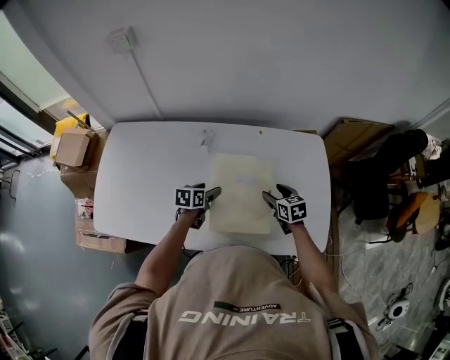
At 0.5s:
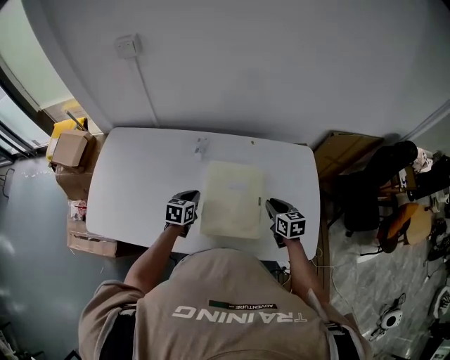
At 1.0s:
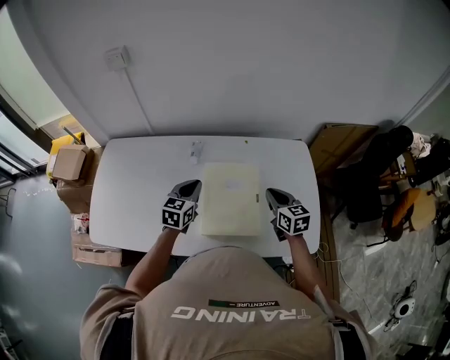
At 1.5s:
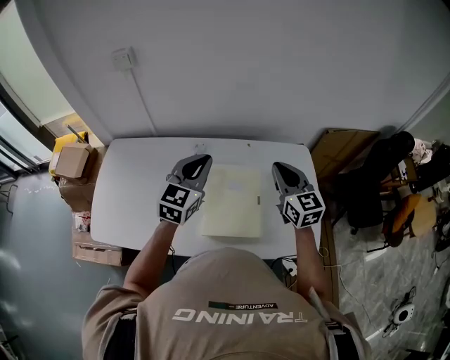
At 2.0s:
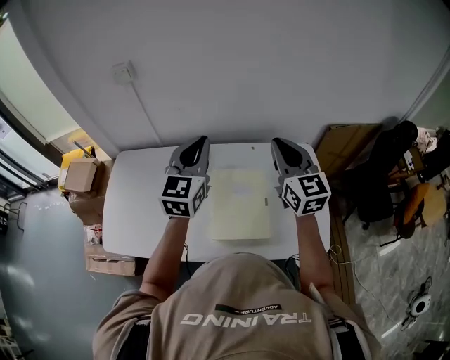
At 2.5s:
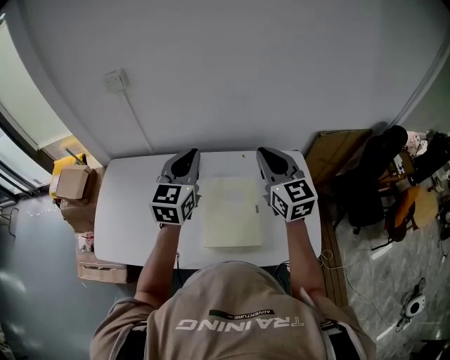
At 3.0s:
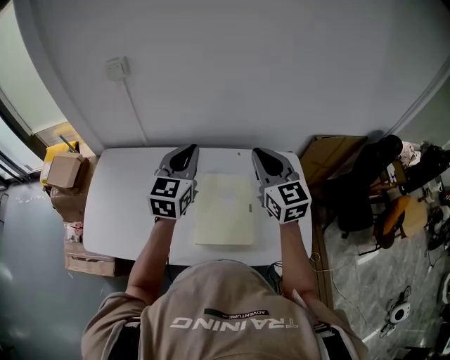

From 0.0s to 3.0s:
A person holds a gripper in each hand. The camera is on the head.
From 0.0s to 1.5s: Both grippers travel together upward, some 30 cm. The left gripper points its fingers approximately 30 degrees further upward, and closes. The right gripper points its fingers some 30 degrees further upward, and closes up.
From 1.5s to 3.0s: The right gripper travels upward and to the left by approximately 10 cm. Meanwhile the left gripper goes about 5 cm upward.

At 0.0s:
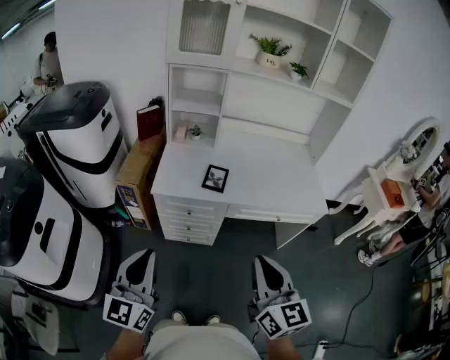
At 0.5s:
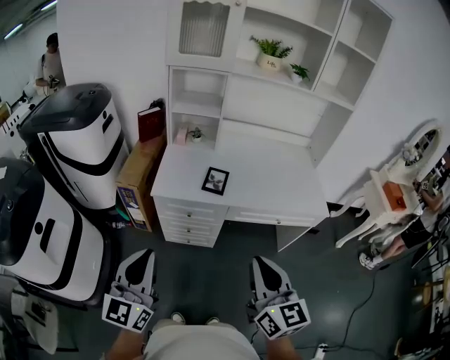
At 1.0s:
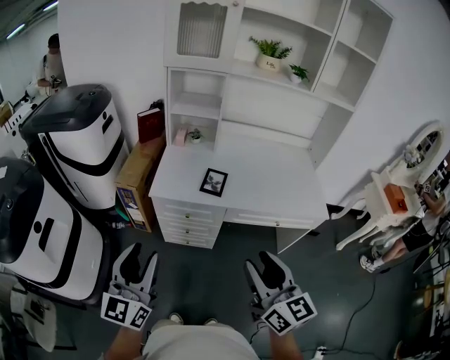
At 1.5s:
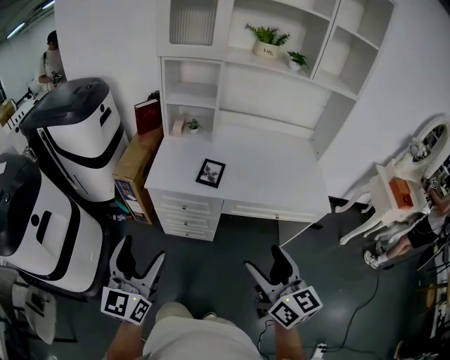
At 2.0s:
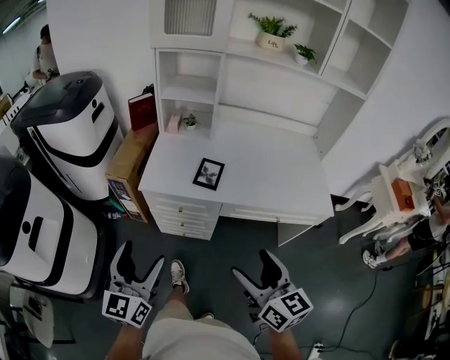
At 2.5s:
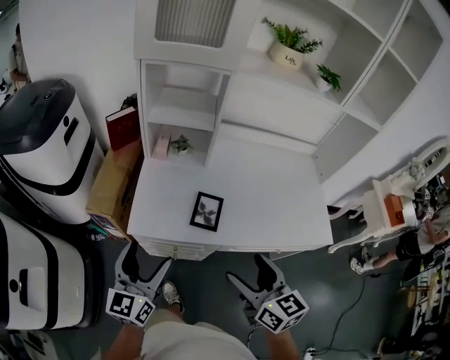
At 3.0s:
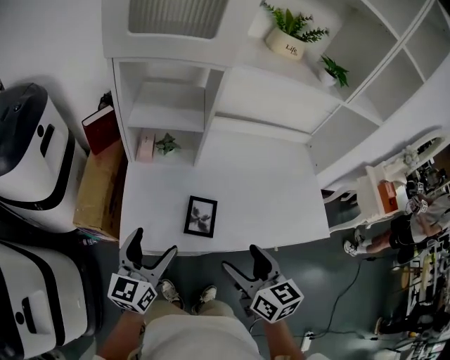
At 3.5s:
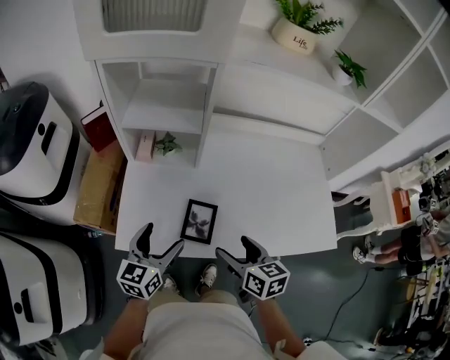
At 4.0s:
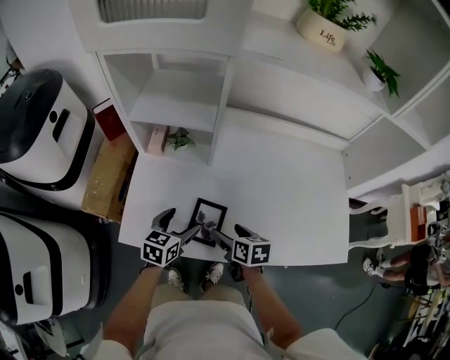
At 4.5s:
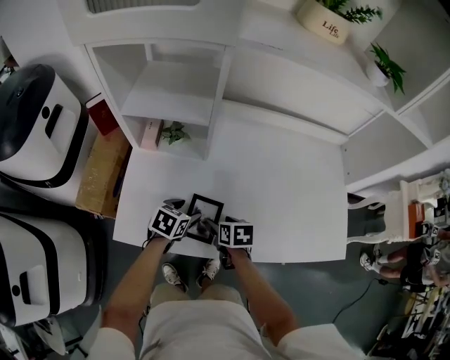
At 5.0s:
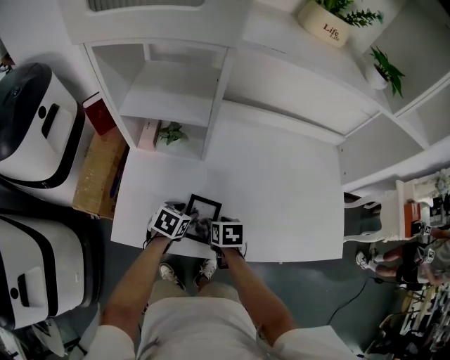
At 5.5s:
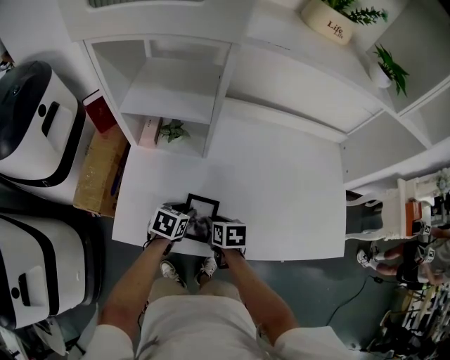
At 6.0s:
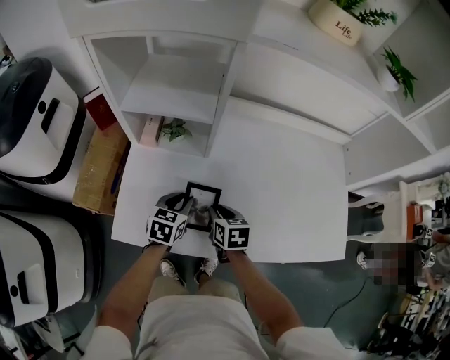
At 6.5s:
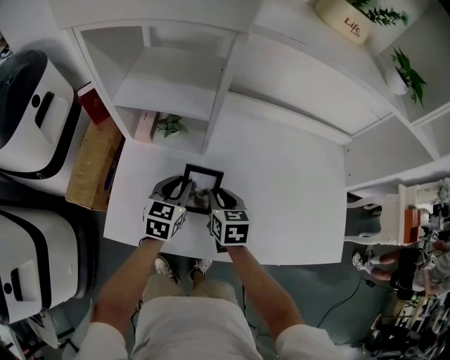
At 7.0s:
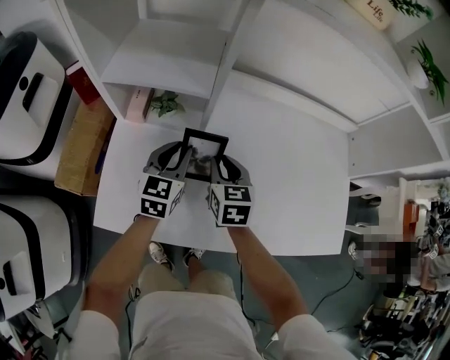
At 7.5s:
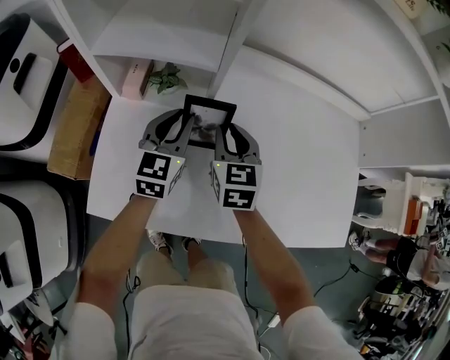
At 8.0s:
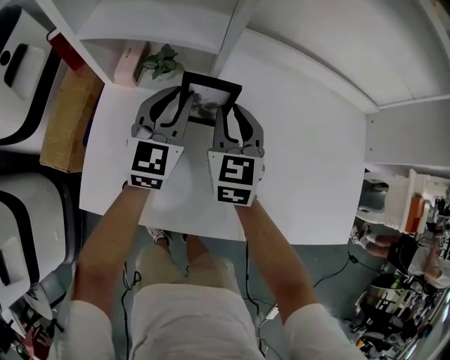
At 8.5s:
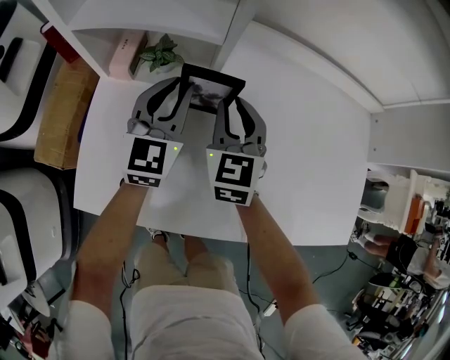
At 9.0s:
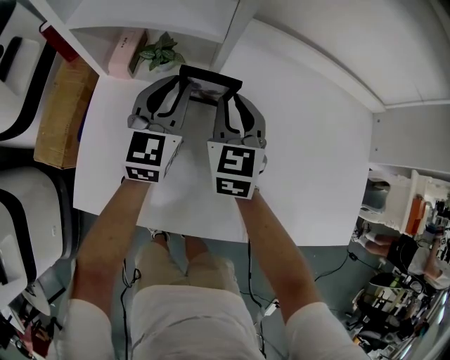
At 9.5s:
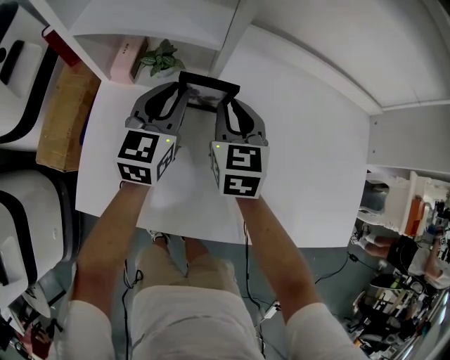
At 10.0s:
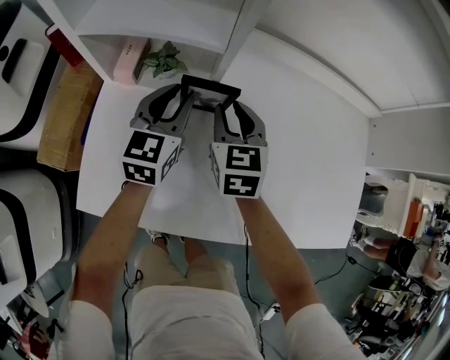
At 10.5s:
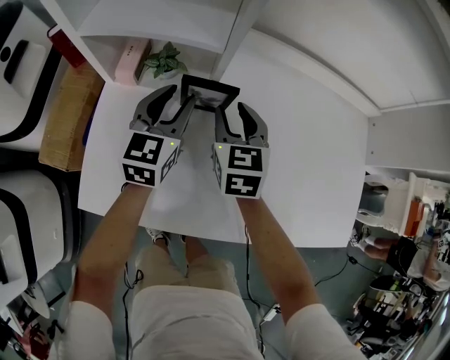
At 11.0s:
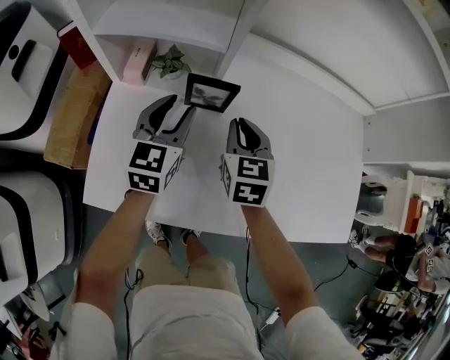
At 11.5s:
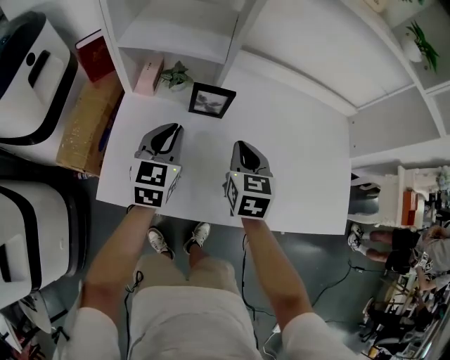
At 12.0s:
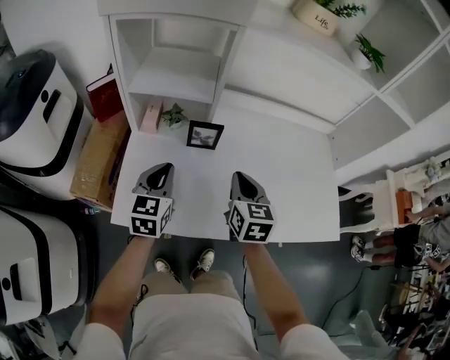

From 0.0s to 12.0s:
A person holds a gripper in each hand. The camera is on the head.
From 0.0s to 2.0s: Both grippers move downward, forward and to the right, approximately 10 cm. The right gripper opens up, while the left gripper opens up.
From 2.0s to 4.0s: Both grippers are carried forward, approximately 40 cm. The grippers both shift downward by about 25 cm. The left gripper angles its fingers downward, by some 30 degrees; the right gripper tilts its fingers roughly 30 degrees downward.
From 4.0s to 6.0s: Both grippers move forward, about 5 cm. The left gripper closes up, while the right gripper closes its fingers.
From 6.0s to 8.0s: The grippers both shift forward and upward by some 15 cm. The left gripper tips its fingers upward by approximately 30 degrees, while the right gripper changes its angle by about 40 degrees.
From 8.0s to 10.0s: There are only small adjustments of the grippers.
From 10.0s to 12.0s: The grippers both shift backward and upward by some 20 cm.

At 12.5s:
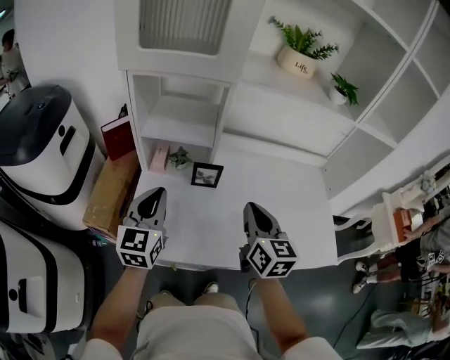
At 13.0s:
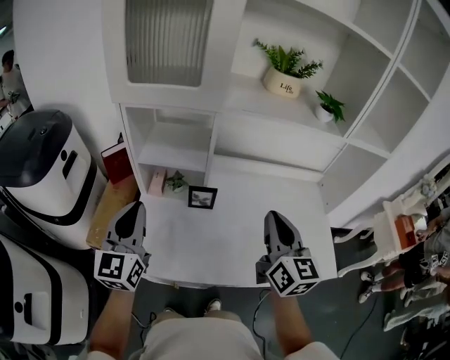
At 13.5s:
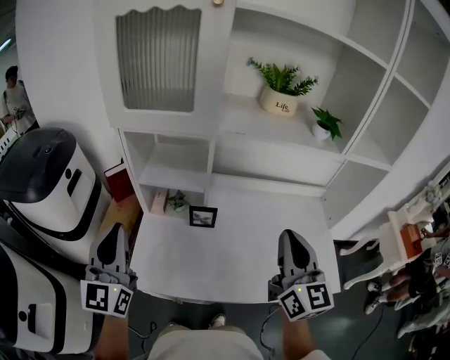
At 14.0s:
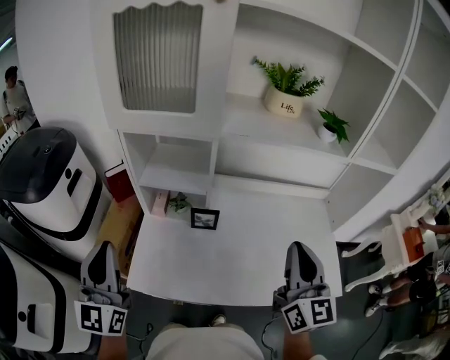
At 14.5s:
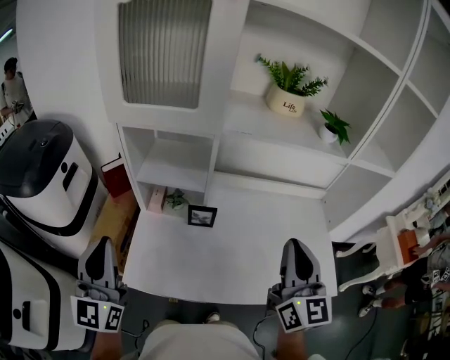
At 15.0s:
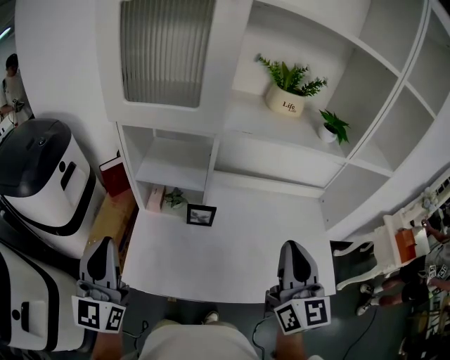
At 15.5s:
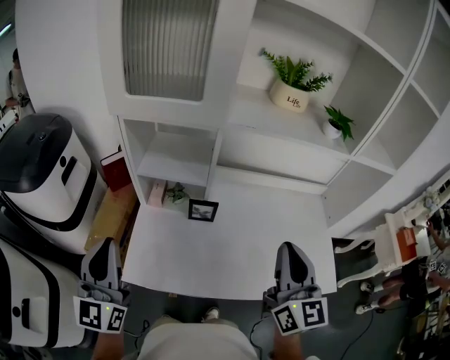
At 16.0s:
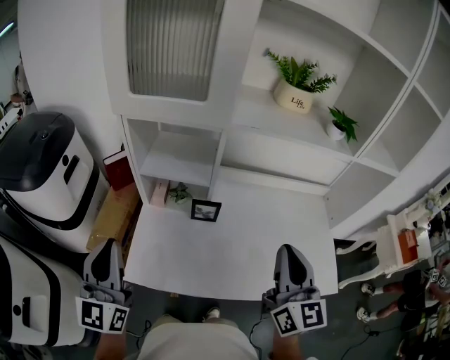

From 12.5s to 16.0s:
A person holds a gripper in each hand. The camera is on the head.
From 12.5s to 14.5s: The left gripper goes some 20 cm upward, backward and to the left, and swivels approximately 20 degrees. Meanwhile the right gripper goes approximately 15 cm upward and to the right, and changes its angle by roughly 20 degrees.
From 14.5s to 16.0s: There are only small adjustments of the grippers.

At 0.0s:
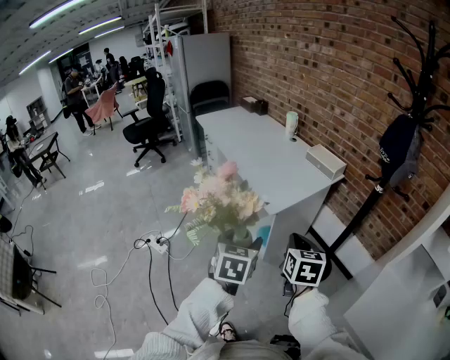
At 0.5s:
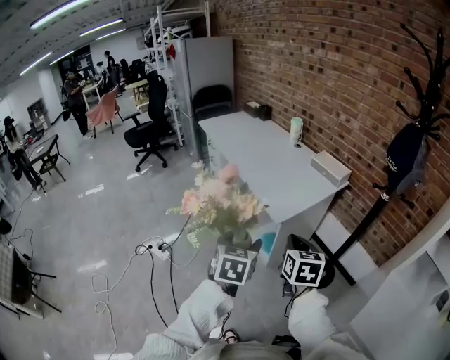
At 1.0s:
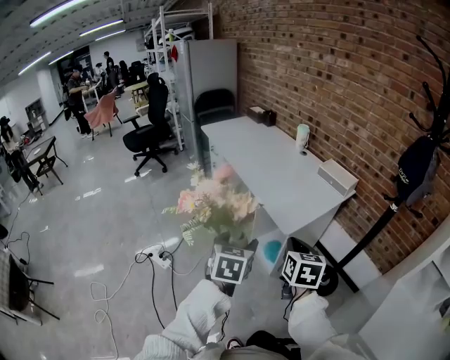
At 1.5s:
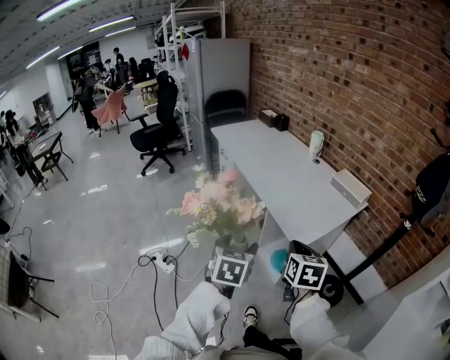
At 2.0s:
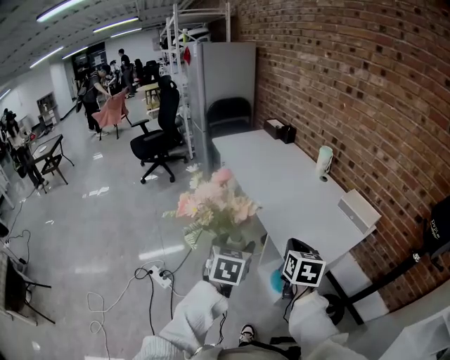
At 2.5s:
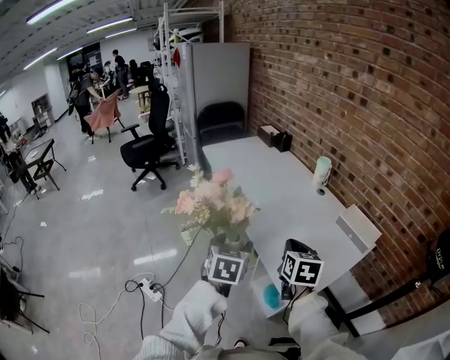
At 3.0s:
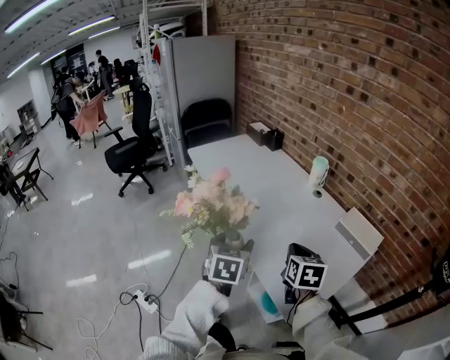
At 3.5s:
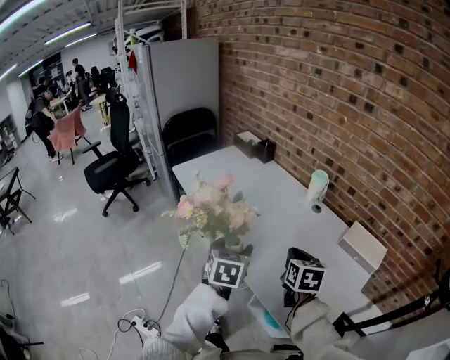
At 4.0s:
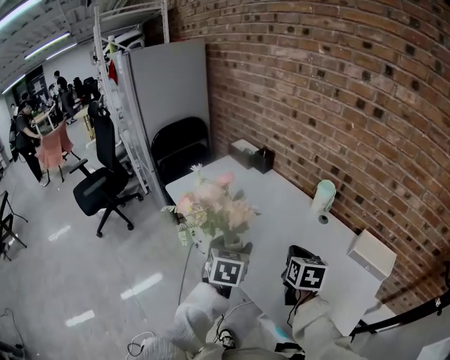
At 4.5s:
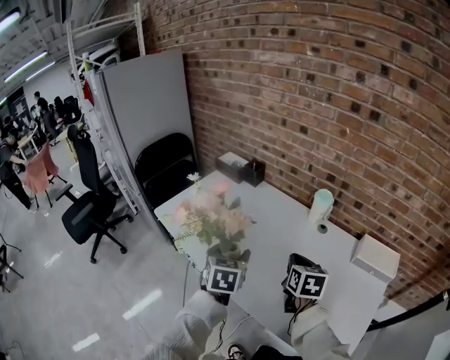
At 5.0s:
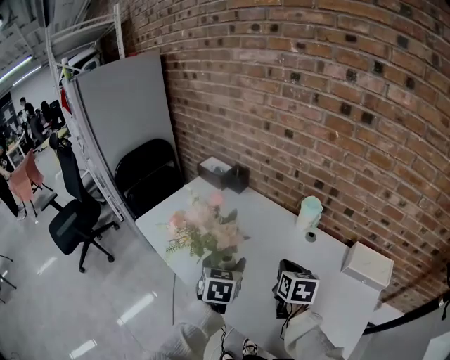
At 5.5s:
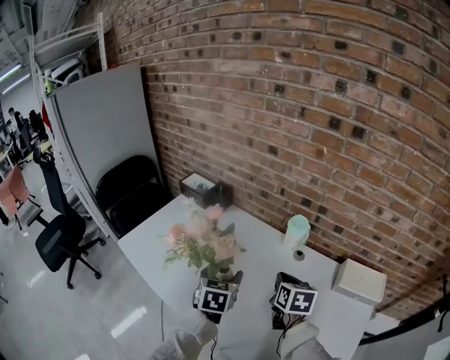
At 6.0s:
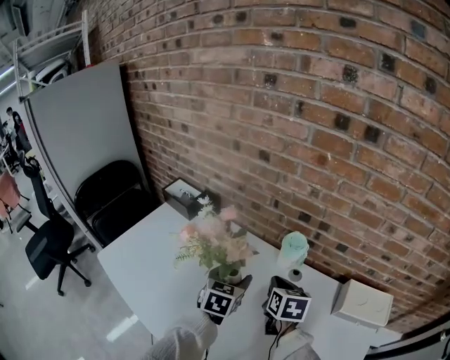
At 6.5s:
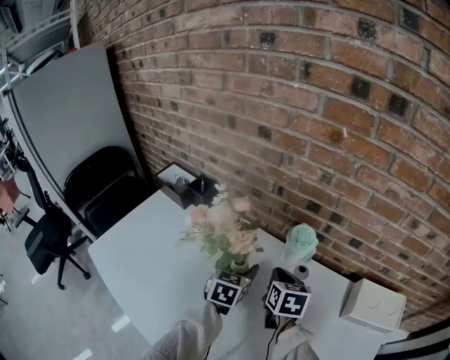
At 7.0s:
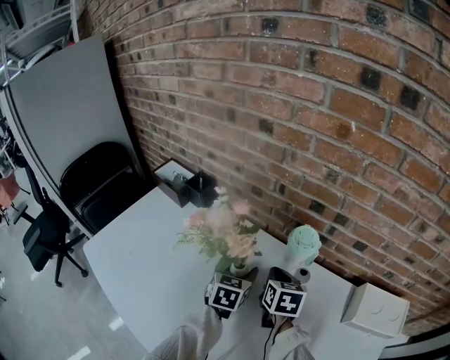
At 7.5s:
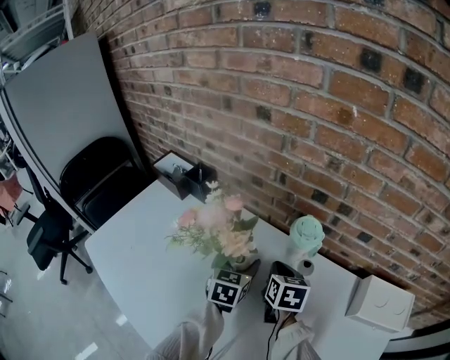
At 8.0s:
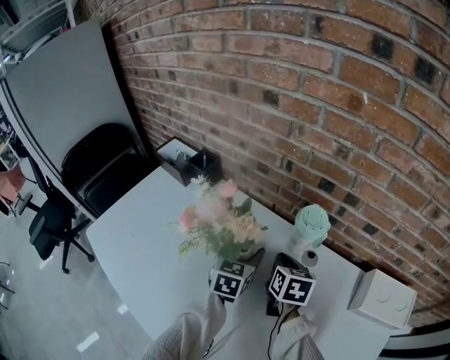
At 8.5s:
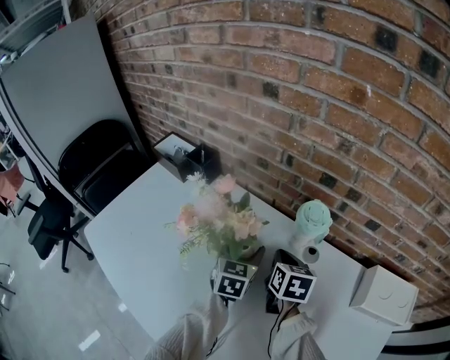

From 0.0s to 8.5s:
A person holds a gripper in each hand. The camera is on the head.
From 0.0s to 2.0s: The grippers both shift forward and to the left by roughly 30 cm.
From 2.0s to 4.0s: The pair of grippers is taken forward, about 40 cm.
From 4.0s to 6.5s: The right gripper moves forward and downward, roughly 35 cm. Meanwhile the left gripper moves forward, to the right and downward, some 40 cm, and rotates about 20 degrees.
From 6.5s to 8.5s: The right gripper heads downward, covering approximately 5 cm.
